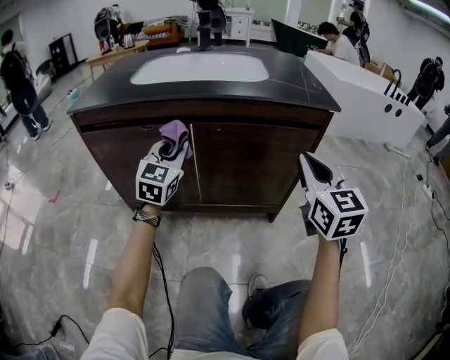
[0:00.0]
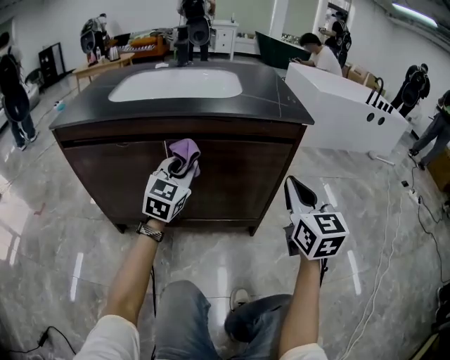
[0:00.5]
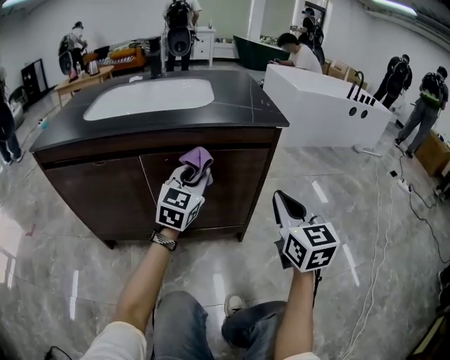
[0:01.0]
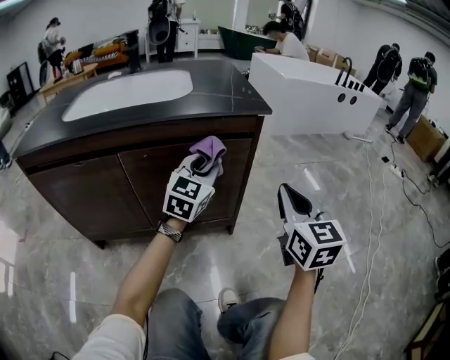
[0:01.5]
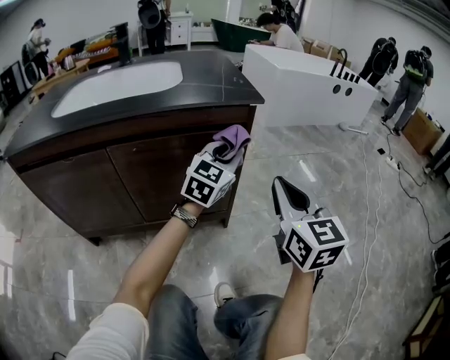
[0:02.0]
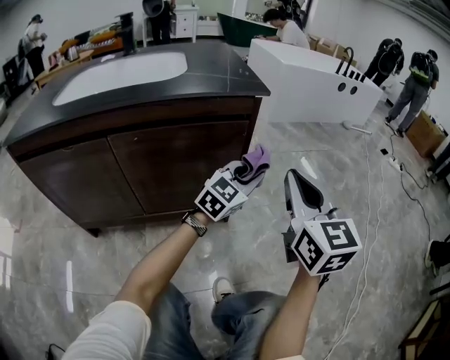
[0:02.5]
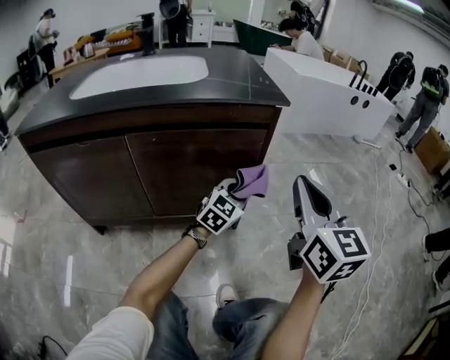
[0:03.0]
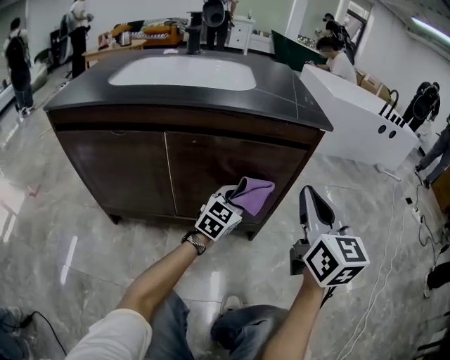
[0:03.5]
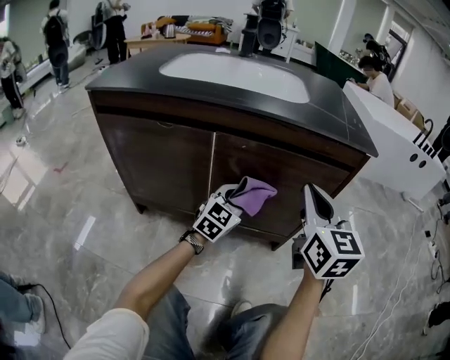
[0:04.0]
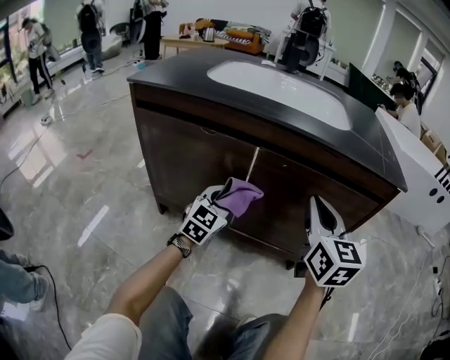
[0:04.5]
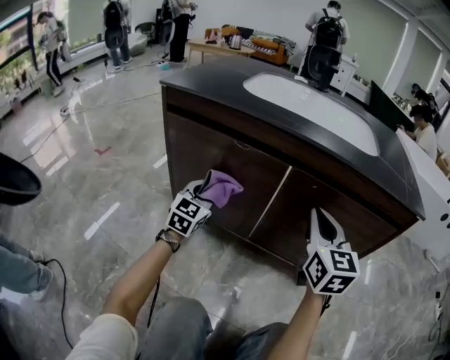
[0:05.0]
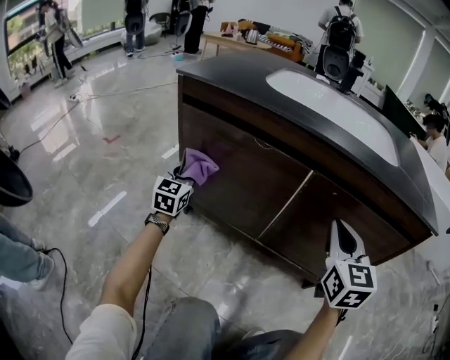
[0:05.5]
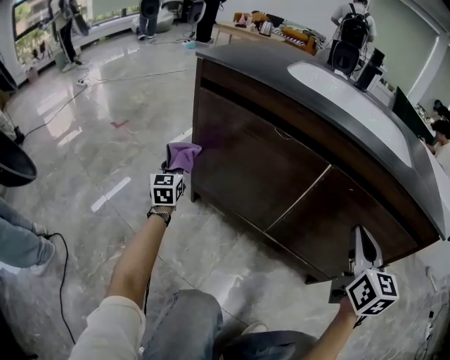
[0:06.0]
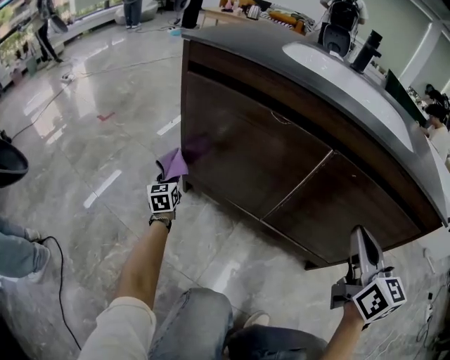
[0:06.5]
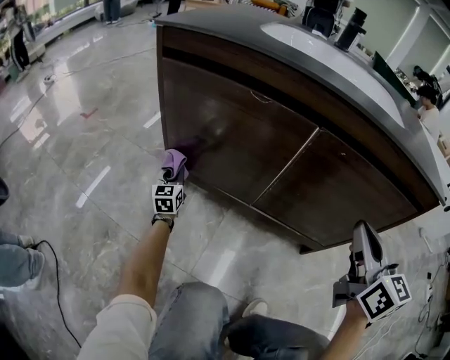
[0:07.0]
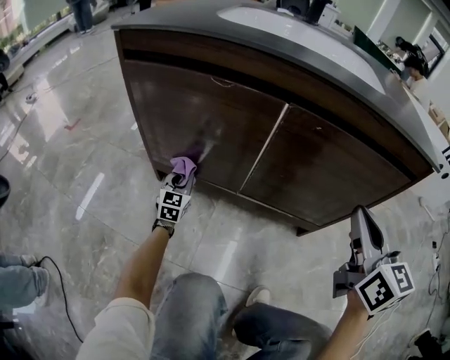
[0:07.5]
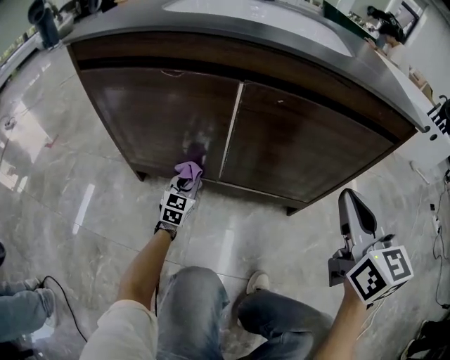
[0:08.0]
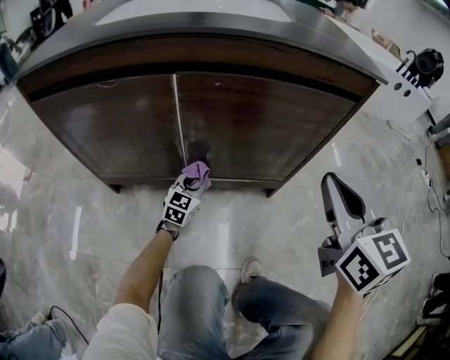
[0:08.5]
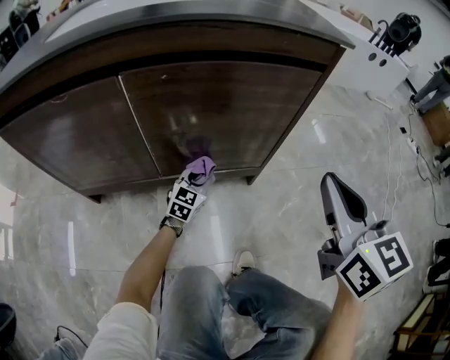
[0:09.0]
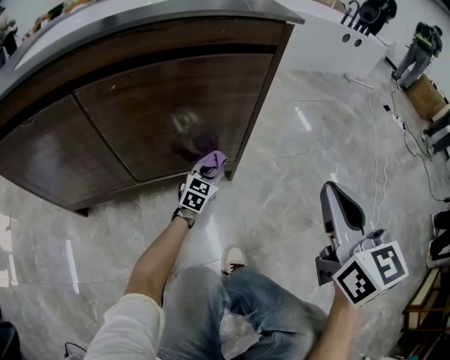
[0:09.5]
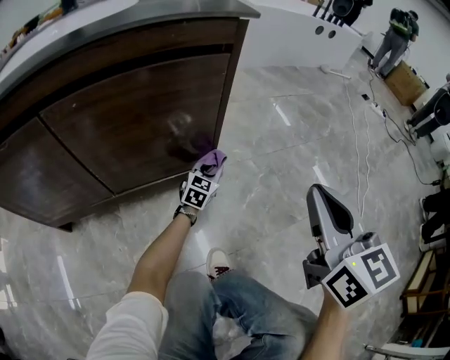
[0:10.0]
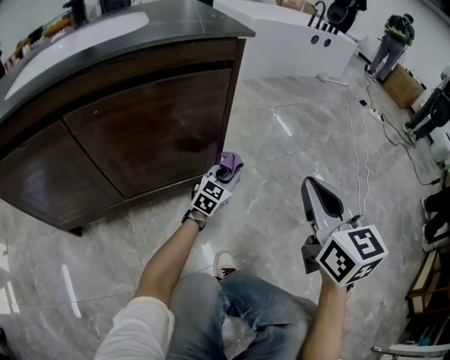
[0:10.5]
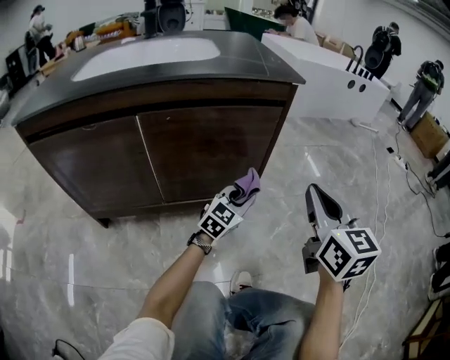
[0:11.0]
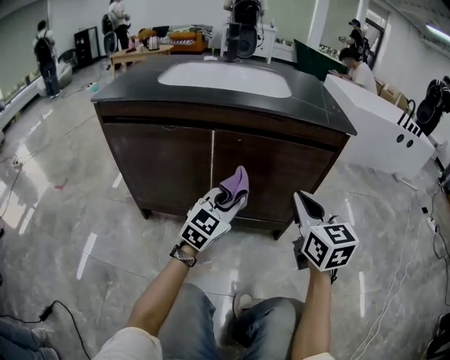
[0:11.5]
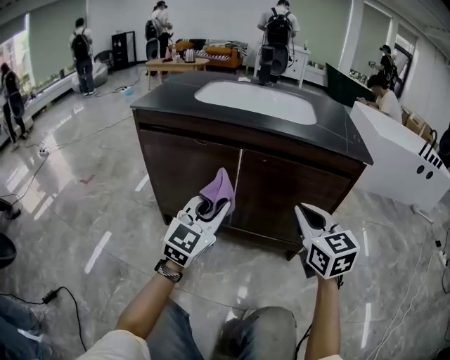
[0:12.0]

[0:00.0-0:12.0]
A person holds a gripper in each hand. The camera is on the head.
0:00.0 to 0:02.0: The left gripper goes roughly 35 cm to the right, and rotates approximately 30 degrees. The right gripper goes roughly 15 cm to the right.
0:02.0 to 0:04.0: The left gripper travels to the left and downward by about 25 cm. Meanwhile the right gripper is displaced to the left by about 20 cm.
0:04.0 to 0:06.0: The right gripper changes place by approximately 10 cm, while the left gripper changes place by roughly 50 cm, and swivels approximately 60 degrees.
0:06.0 to 0:08.0: The left gripper shifts by about 35 cm, and turns by some 40 degrees. Meanwhile the right gripper changes place by about 10 cm.
0:08.0 to 0:10.0: The left gripper moves about 50 cm, and turns by approximately 40 degrees; the right gripper changes place by some 25 cm, and swivels some 30 degrees.
0:10.0 to 0:12.0: The left gripper changes place by about 60 cm, and changes its angle by roughly 40 degrees. Meanwhile the right gripper shifts by about 25 cm, and turns by some 40 degrees.

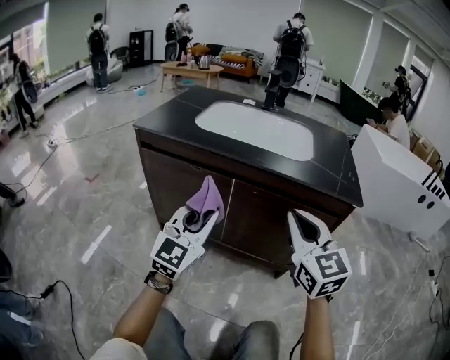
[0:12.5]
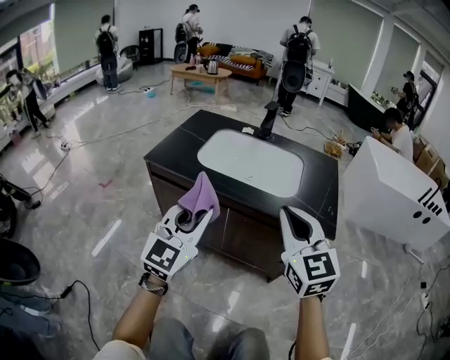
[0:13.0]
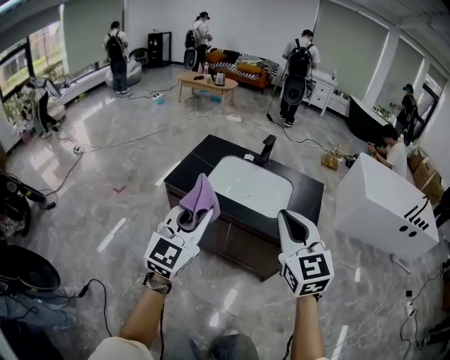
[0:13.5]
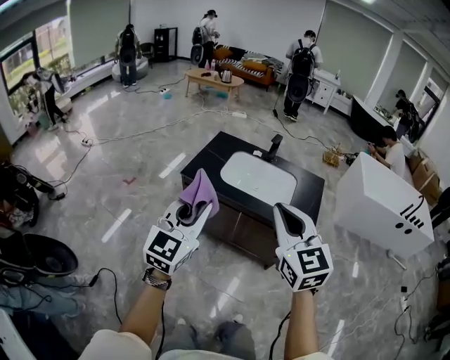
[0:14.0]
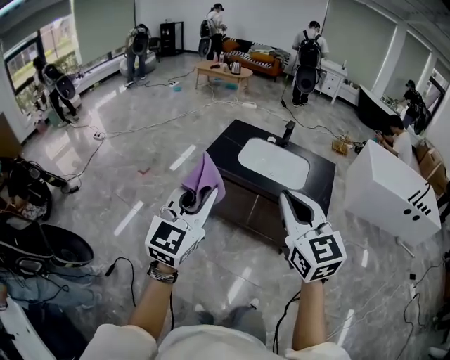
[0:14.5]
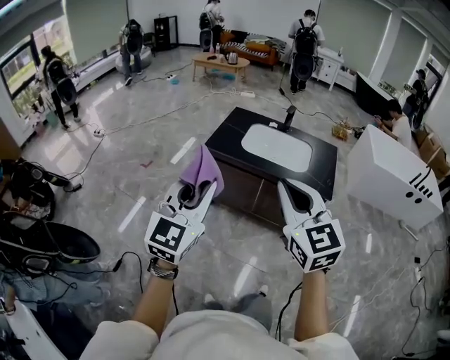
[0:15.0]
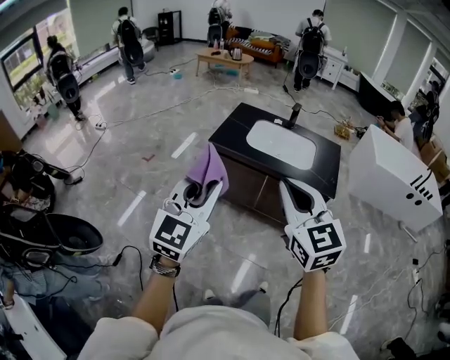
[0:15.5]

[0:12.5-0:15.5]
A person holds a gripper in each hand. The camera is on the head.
0:12.5 to 0:14.0: Both grippers move upward, about 50 cm.
0:14.0 to 0:15.5: The grippers both shift backward and to the left by about 15 cm.

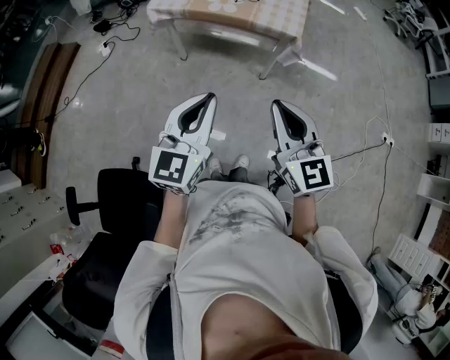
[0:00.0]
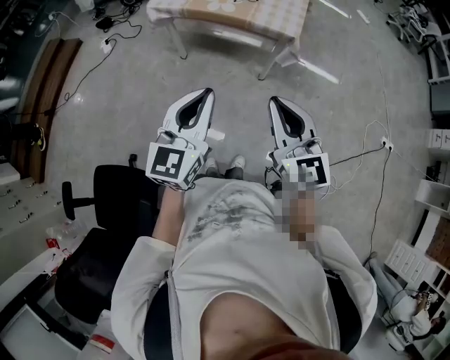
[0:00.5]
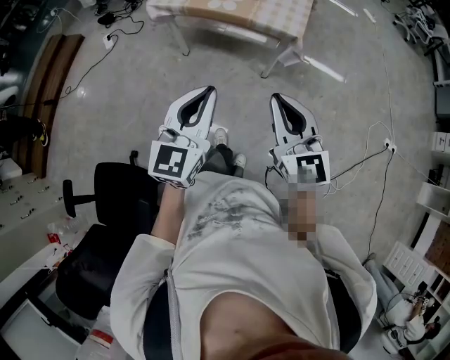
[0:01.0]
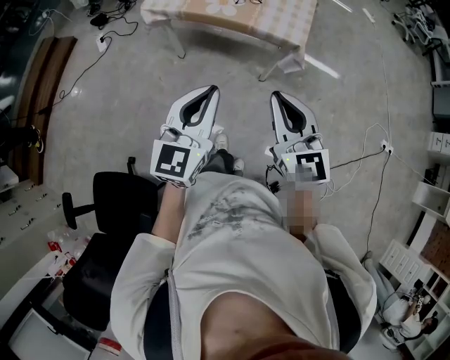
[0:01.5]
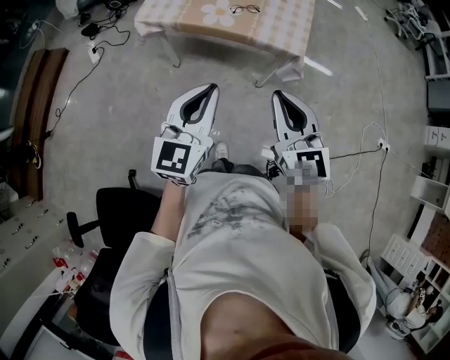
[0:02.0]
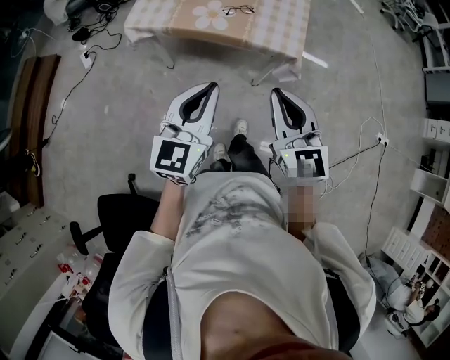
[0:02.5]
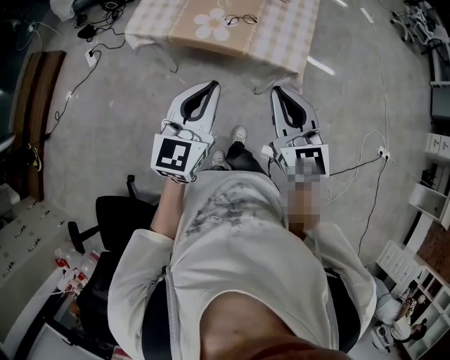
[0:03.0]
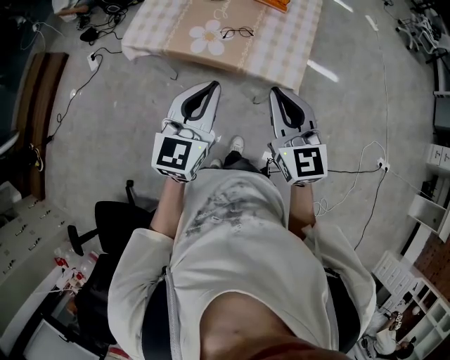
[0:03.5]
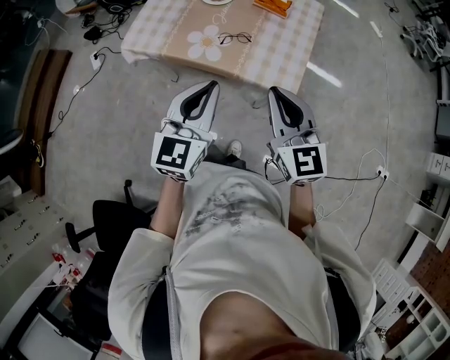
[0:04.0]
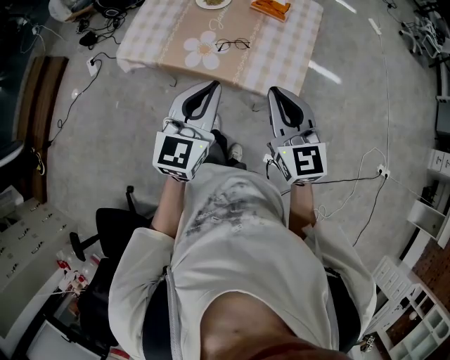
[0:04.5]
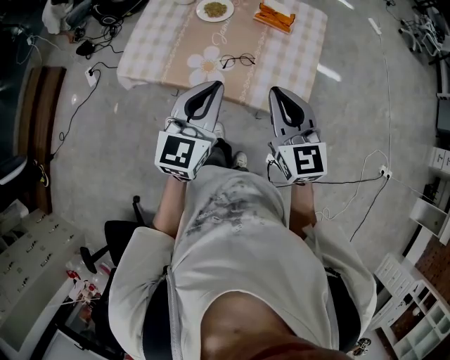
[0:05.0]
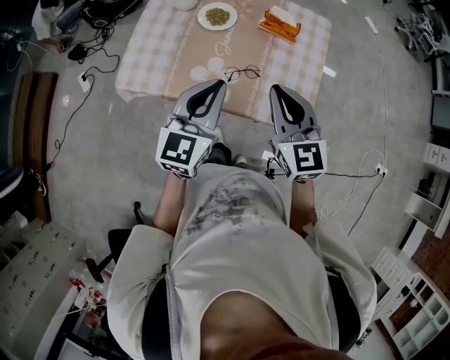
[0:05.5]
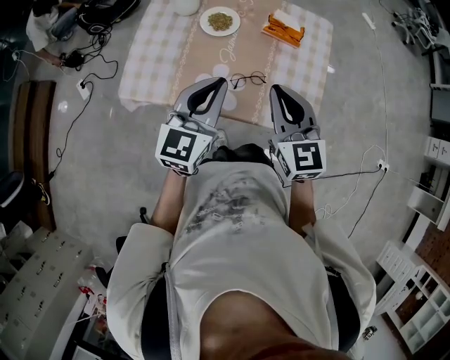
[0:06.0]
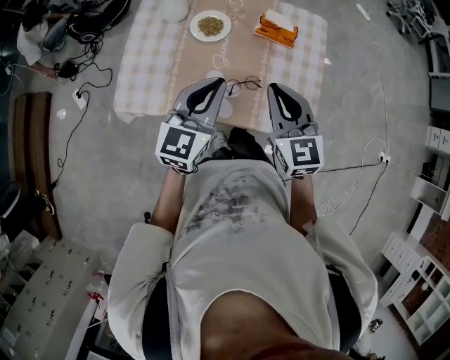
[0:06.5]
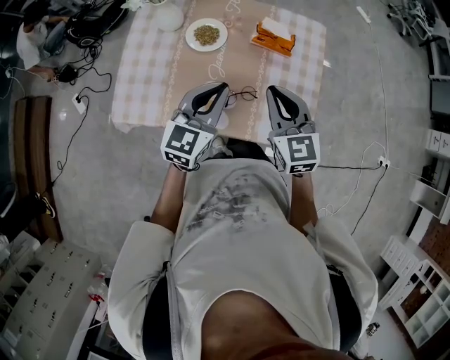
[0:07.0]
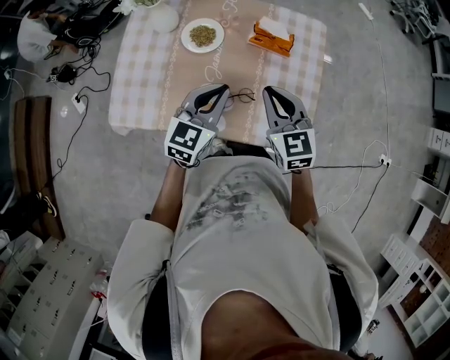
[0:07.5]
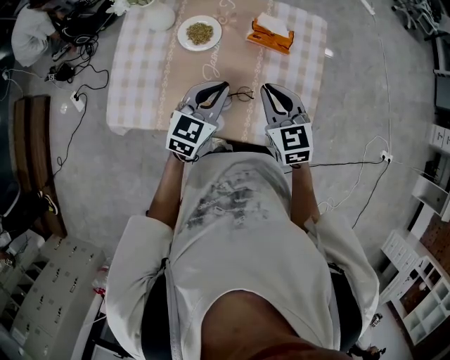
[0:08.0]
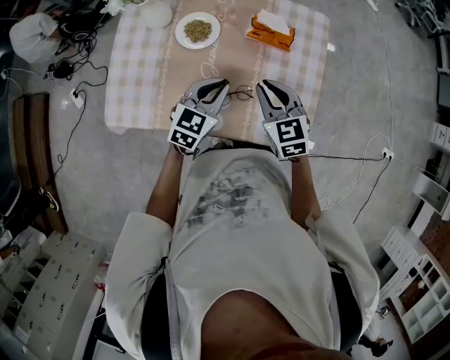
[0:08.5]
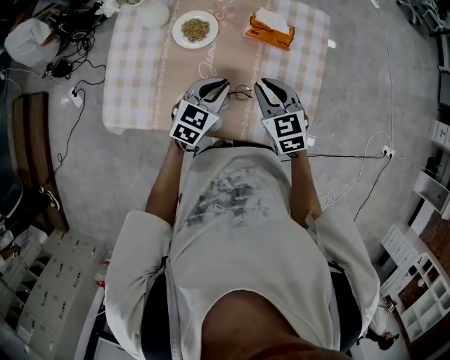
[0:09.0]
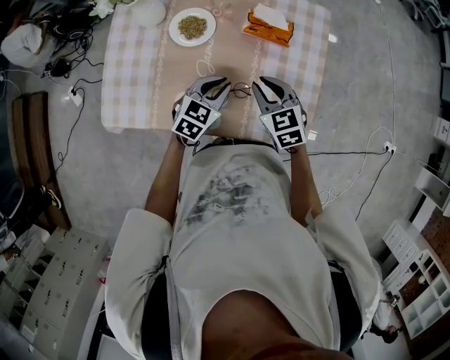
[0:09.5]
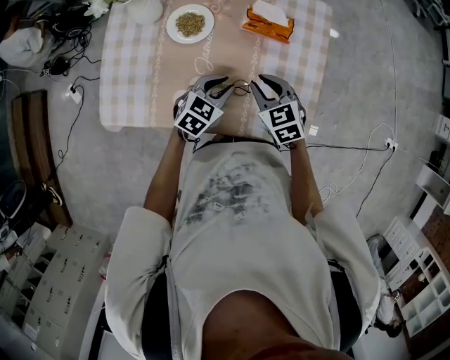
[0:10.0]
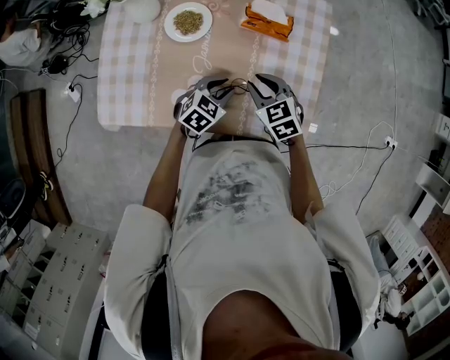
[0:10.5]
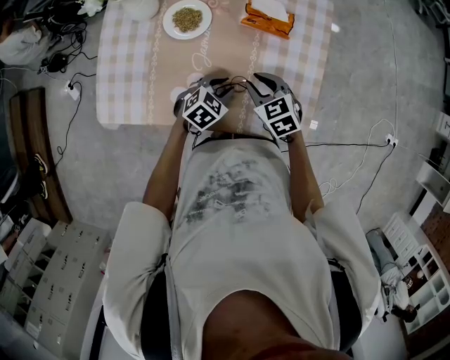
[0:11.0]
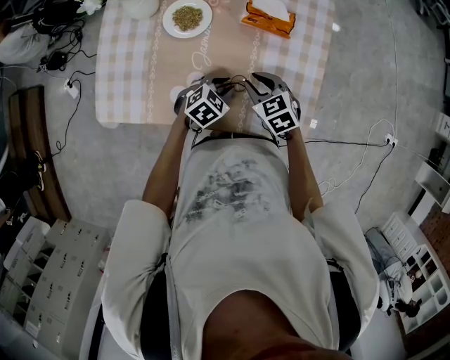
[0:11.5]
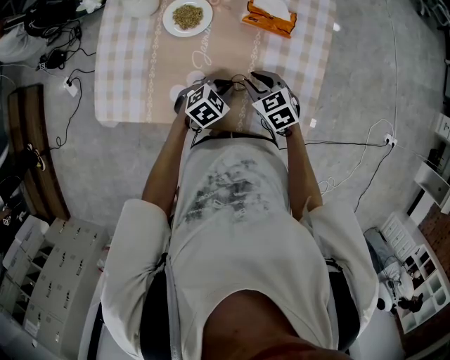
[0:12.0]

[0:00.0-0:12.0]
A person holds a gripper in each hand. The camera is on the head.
0:00.0 to 0:02.0: Both grippers move forward, approximately 15 cm.
0:02.0 to 0:04.0: The grippers both shift forward by about 20 cm.
0:04.0 to 0:06.0: The left gripper shifts some 25 cm forward; the right gripper shifts roughly 25 cm forward and to the left.
0:06.0 to 0:08.0: The right gripper travels forward and downward by some 15 cm, while the left gripper is displaced downward, forward and to the right by approximately 15 cm.
0:08.0 to 0:10.0: The grippers both shift downward by some 10 cm. The left gripper swivels roughly 20 degrees.
0:10.0 to 0:12.0: Both grippers travel together downward, approximately 5 cm.
